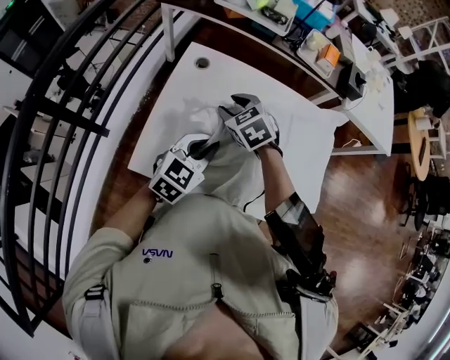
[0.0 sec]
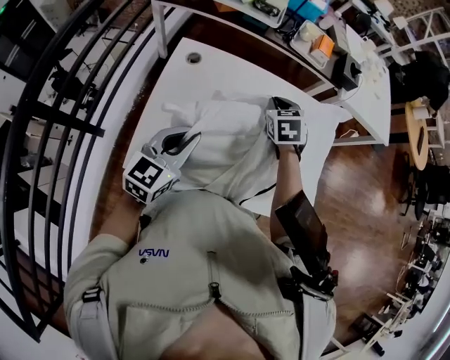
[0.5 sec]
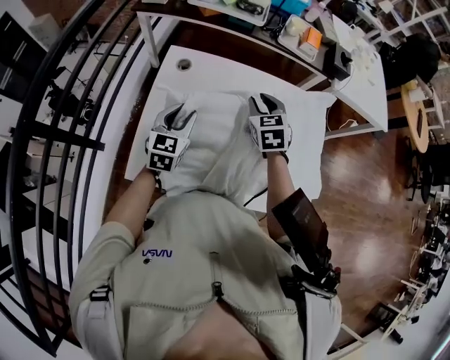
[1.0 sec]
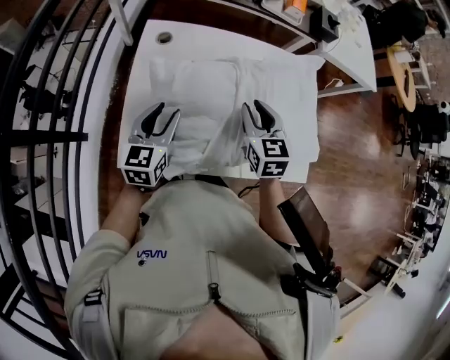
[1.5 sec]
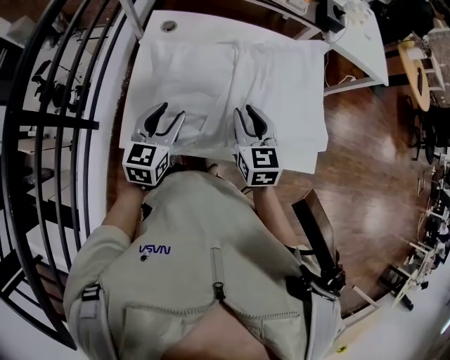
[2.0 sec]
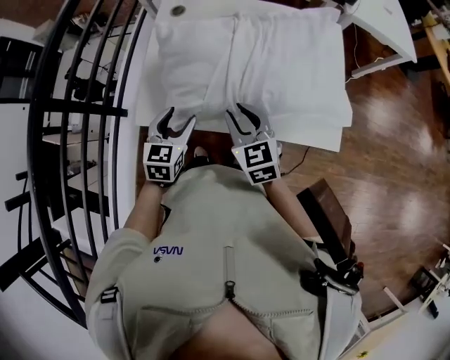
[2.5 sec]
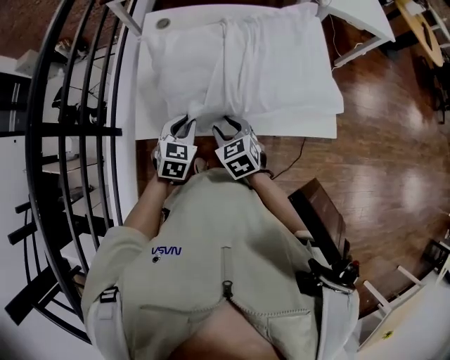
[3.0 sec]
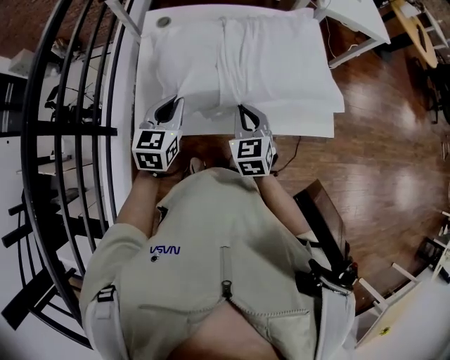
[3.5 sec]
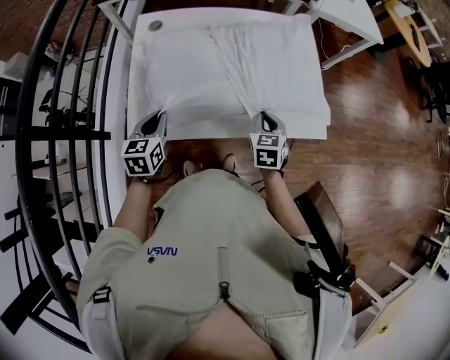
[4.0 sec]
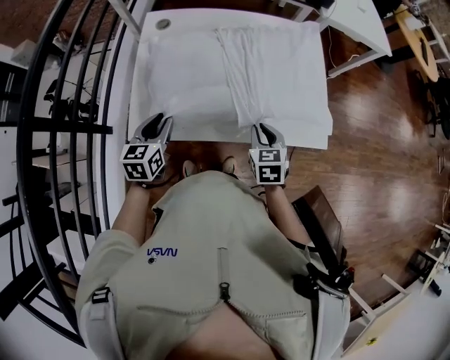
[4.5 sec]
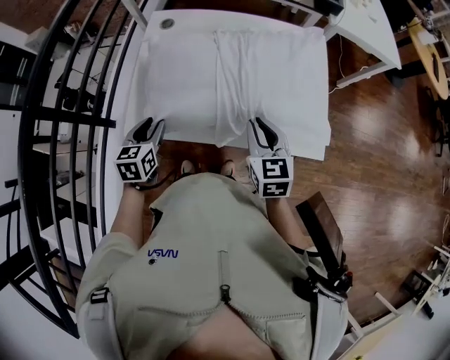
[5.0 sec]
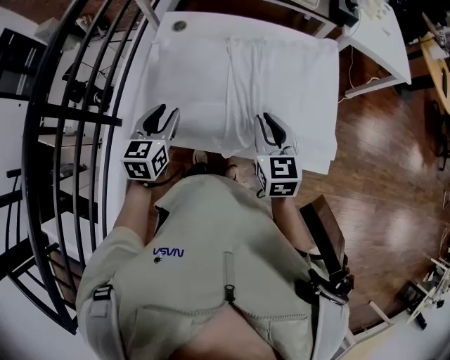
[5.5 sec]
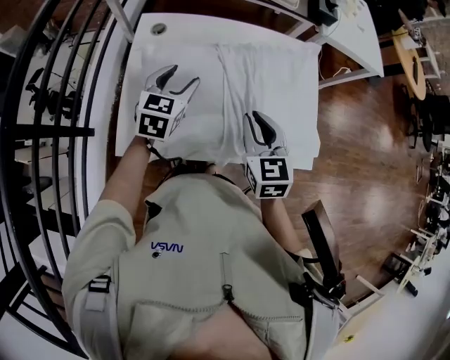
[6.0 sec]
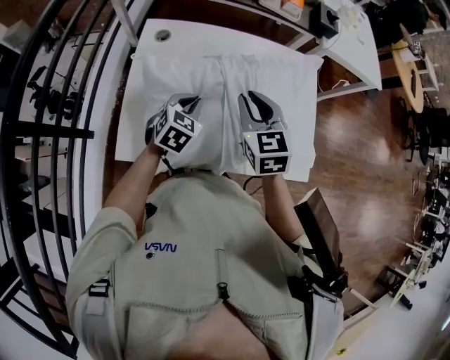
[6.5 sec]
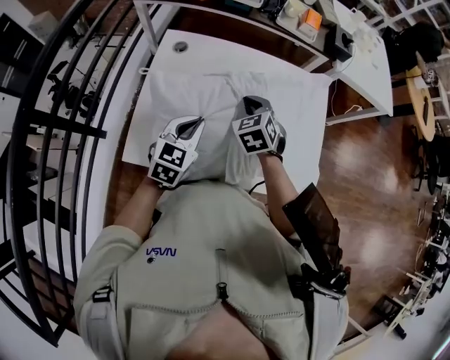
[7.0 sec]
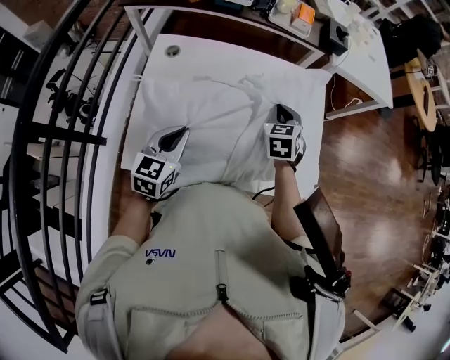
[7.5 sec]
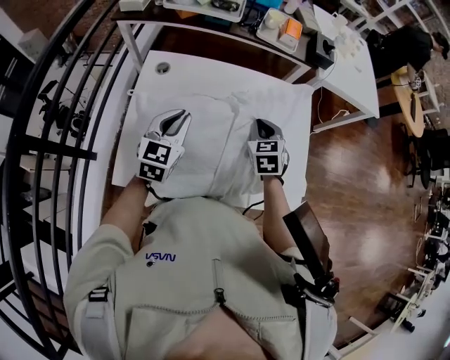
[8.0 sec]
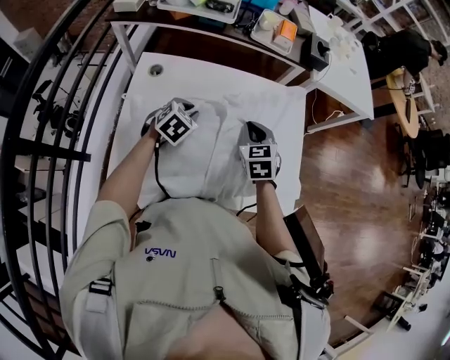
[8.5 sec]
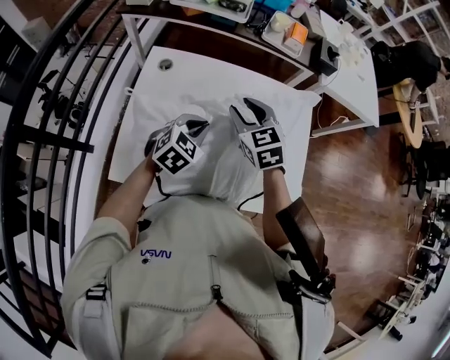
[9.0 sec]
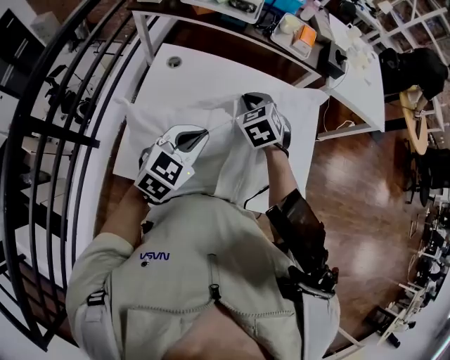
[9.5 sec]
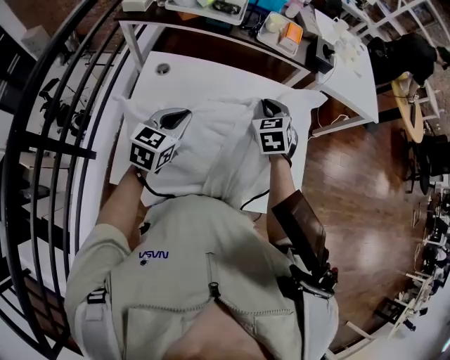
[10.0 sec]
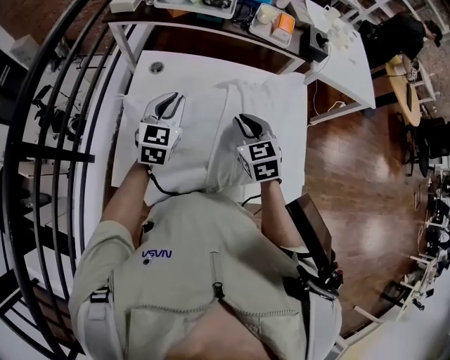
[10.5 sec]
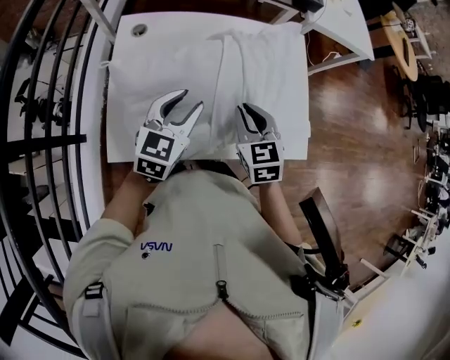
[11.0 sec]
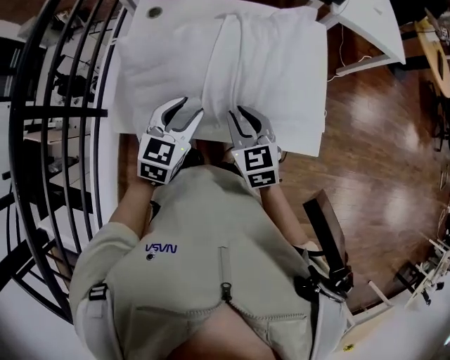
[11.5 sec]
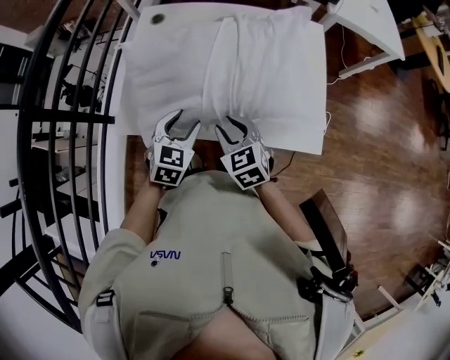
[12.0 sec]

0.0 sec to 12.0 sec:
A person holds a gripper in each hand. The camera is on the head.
0.0 sec to 2.0 sec: The right gripper is displaced backward and to the right by some 20 cm, and turns by approximately 40 degrees, while the left gripper travels to the left by approximately 5 cm, moves some 10 cm forward and comes back, and opens up.
2.0 sec to 4.0 sec: The left gripper moves up and down over some 10 cm, changing direction 2 times, and closes up. The right gripper goes about 15 cm downward, to the right and backward, turns by some 20 degrees, and closes up.
4.0 sec to 6.0 sec: The left gripper moves forward, upward and to the right, about 20 cm, and opens up, while the right gripper goes about 15 cm upward, to the left and forward, and turns by roughly 20 degrees.
6.0 sec to 8.0 sec: The right gripper goes about 15 cm forward and downward, while the left gripper moves roughly 10 cm backward and comes back, and closes up.
8.0 sec to 10.0 sec: The right gripper travels forward by some 5 cm, travels to the left and back again, approximately 10 cm each way, and opens, then closes once more. Meanwhile the left gripper travels downward and back again, about 10 cm each way.
10.0 sec to 12.0 sec: The right gripper travels backward by some 30 cm, rotates about 30 degrees, and opens, while the left gripper moves backward and downward, some 20 cm, turns by about 20 degrees, and opens.

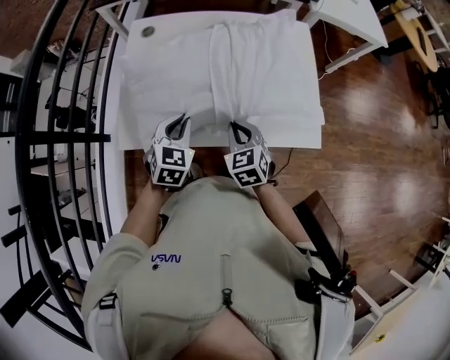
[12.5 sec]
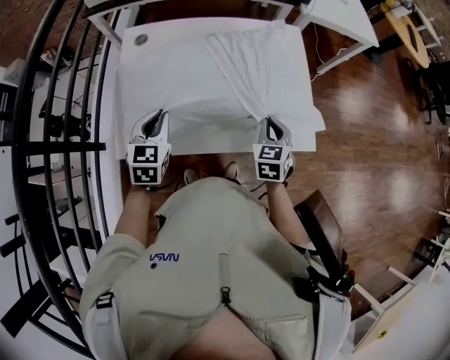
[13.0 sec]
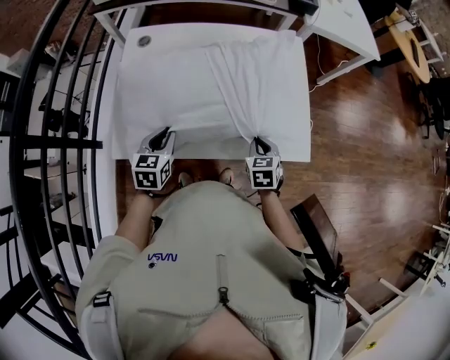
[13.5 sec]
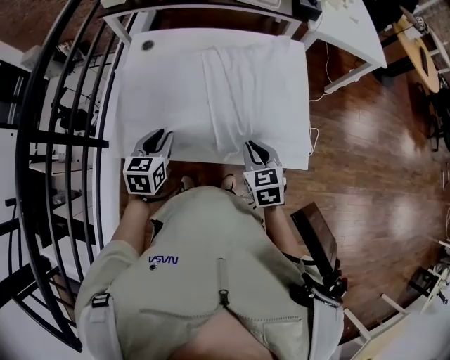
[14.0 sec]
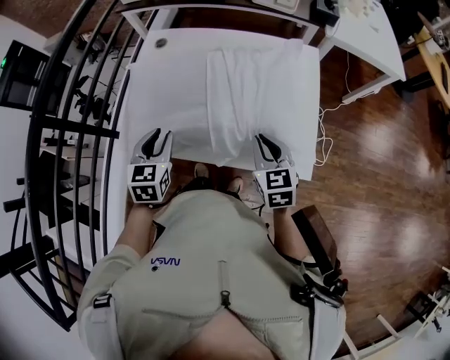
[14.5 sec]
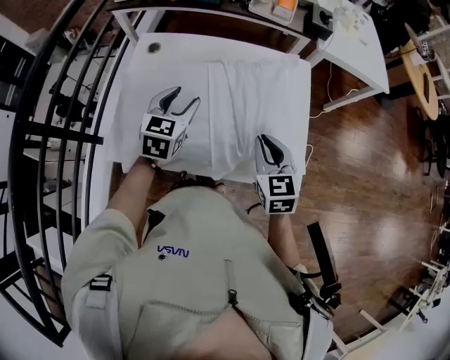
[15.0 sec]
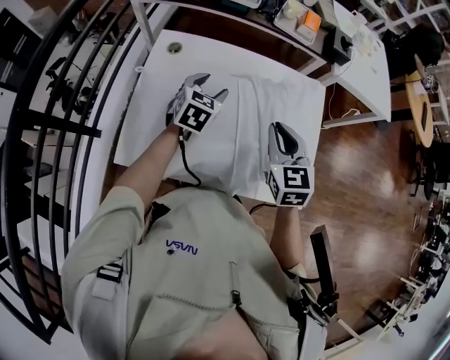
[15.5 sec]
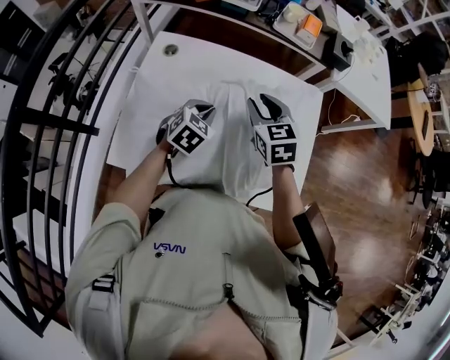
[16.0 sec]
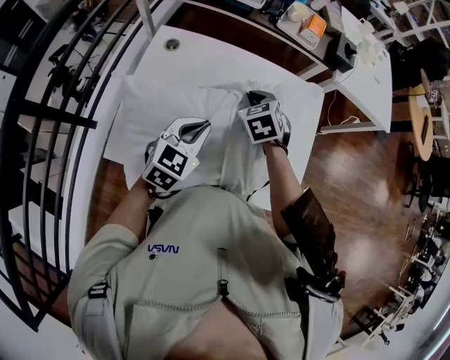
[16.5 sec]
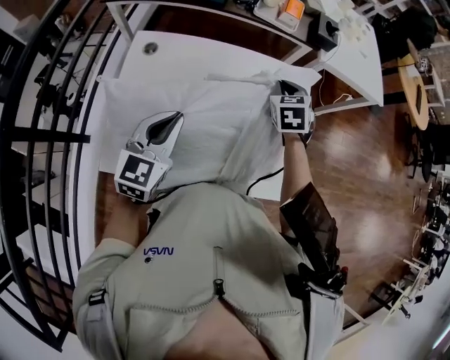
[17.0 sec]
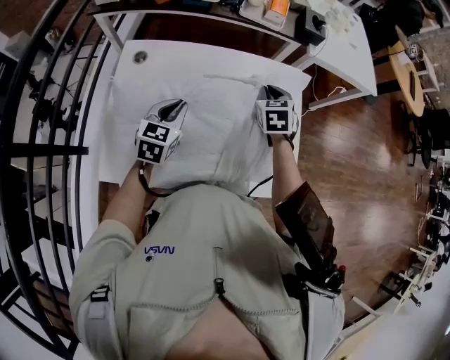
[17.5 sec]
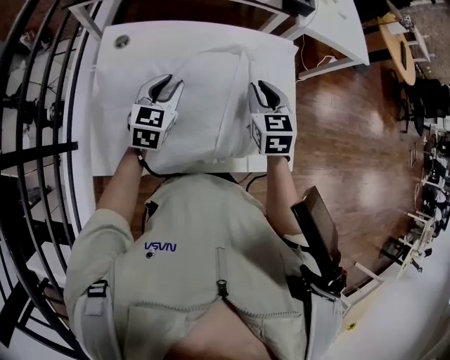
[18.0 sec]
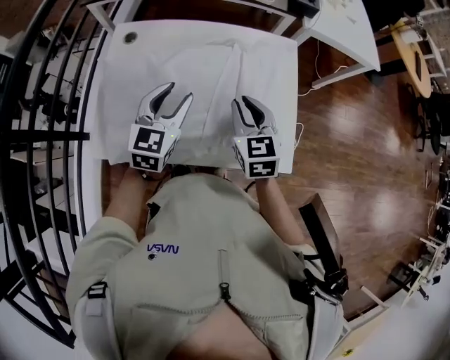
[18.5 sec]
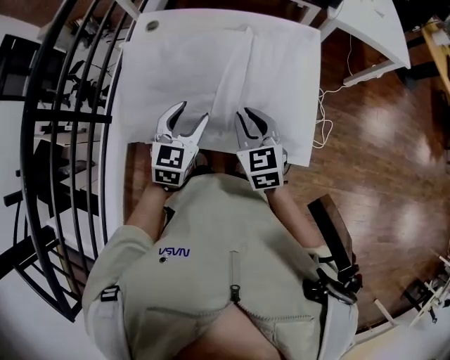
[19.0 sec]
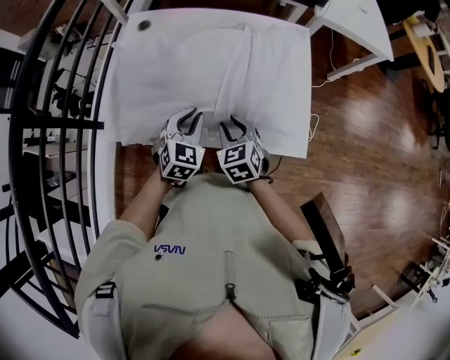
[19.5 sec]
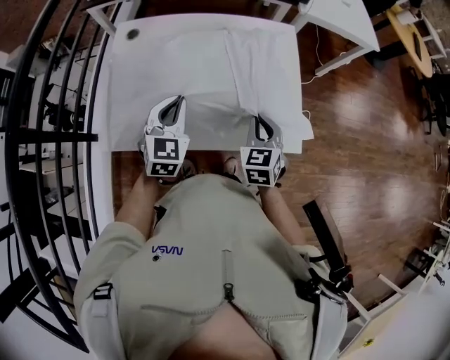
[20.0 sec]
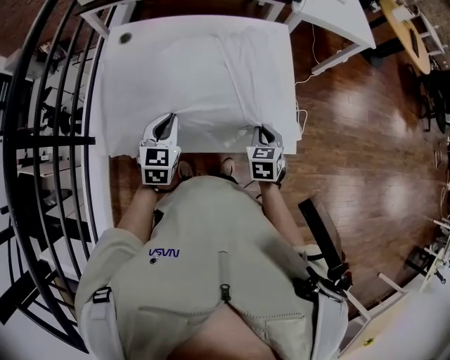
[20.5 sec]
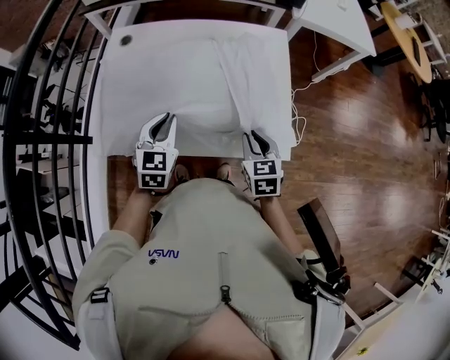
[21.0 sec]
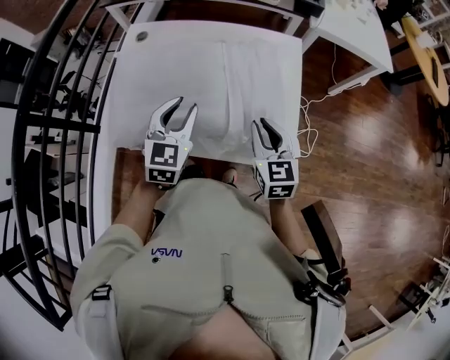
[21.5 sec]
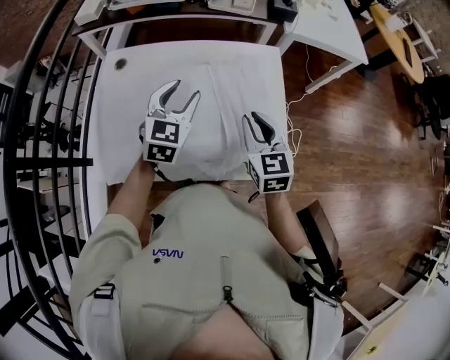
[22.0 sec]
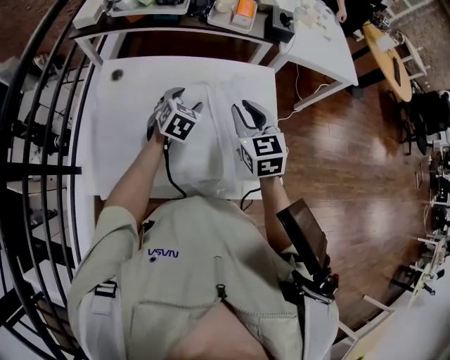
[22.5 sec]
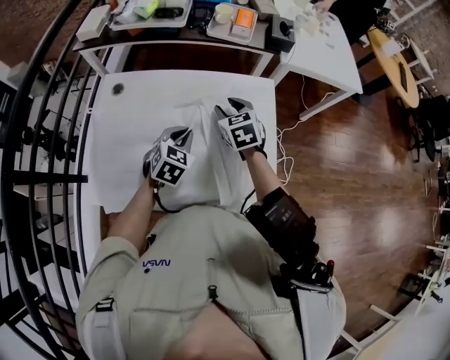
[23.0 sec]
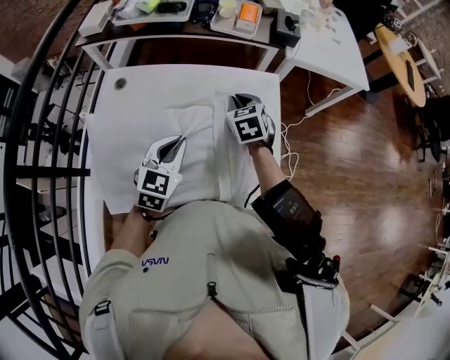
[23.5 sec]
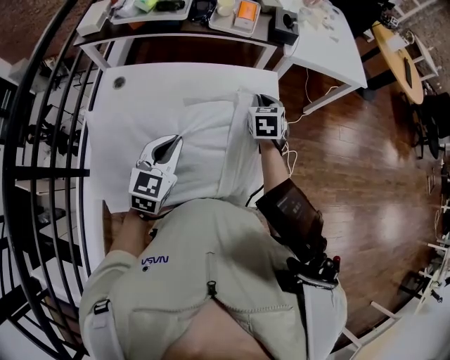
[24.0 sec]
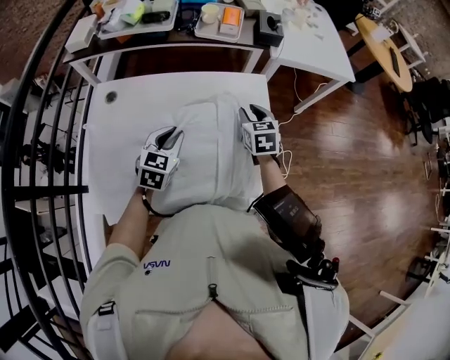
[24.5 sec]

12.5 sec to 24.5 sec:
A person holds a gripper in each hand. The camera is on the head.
12.5 sec to 14.5 sec: The right gripper shifts some 15 cm to the right and upward. Meanwhile the left gripper goes up and down, some 10 cm each way, reversing 2 times, and swivels some 20 degrees.
14.5 sec to 16.5 sec: The right gripper travels forward and to the left by about 25 cm, and changes its angle by some 30 degrees; the left gripper is displaced forward and to the right by some 15 cm, changes its angle by some 30 degrees, and opens, then closes again.
16.5 sec to 18.5 sec: The left gripper goes up and down, about 10 cm each way, reversing 2 times, and opens its fingers; the right gripper travels backward and to the right by some 15 cm, and turns by some 30 degrees.
18.5 sec to 20.5 sec: The left gripper moves up and down over about 10 cm, changing direction 2 times, and closes. Meanwhile the right gripper is displaced downward, to the right and backward by approximately 20 cm, and swivels about 30 degrees.
20.5 sec to 22.5 sec: The right gripper heads upward and forward, covering about 25 cm, and changes its angle by about 30 degrees, while the left gripper is displaced forward by about 20 cm, and opens.
22.5 sec to 24.5 sec: The left gripper heads backward, covering roughly 5 cm, and closes, while the right gripper moves downward, forward and to the right, roughly 15 cm.

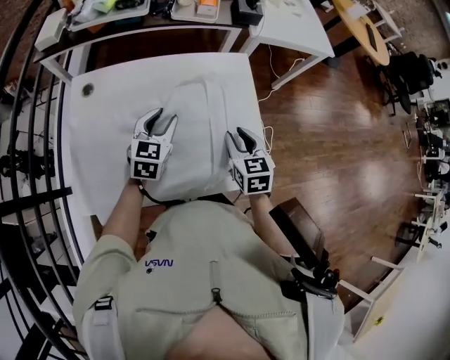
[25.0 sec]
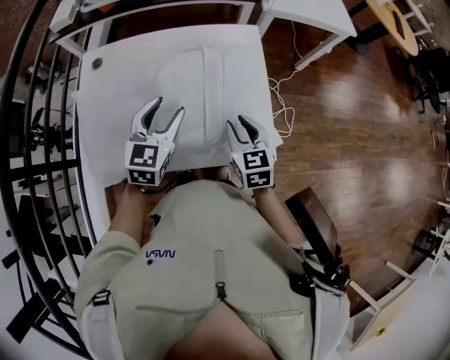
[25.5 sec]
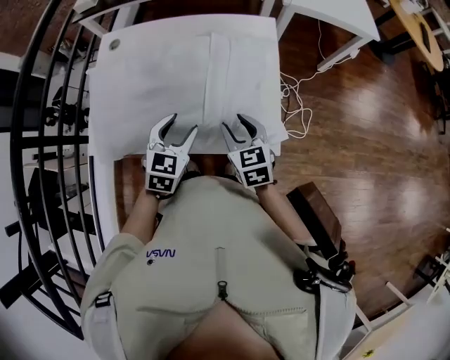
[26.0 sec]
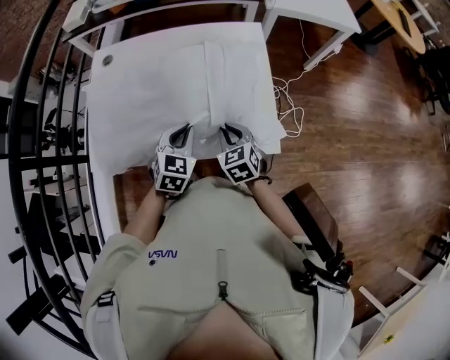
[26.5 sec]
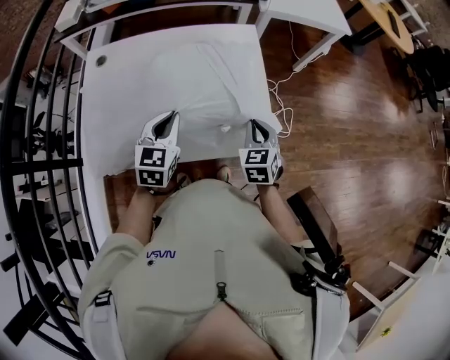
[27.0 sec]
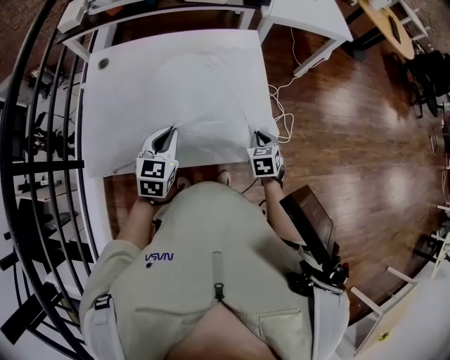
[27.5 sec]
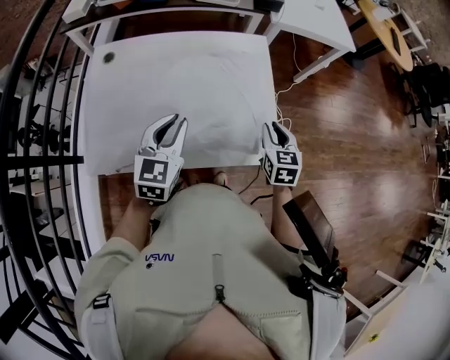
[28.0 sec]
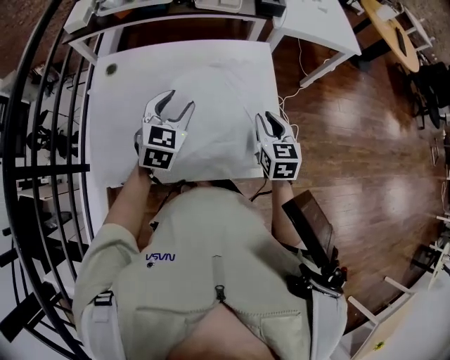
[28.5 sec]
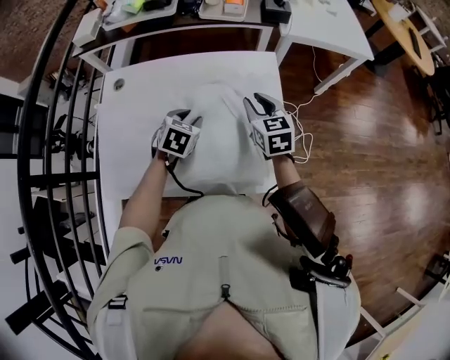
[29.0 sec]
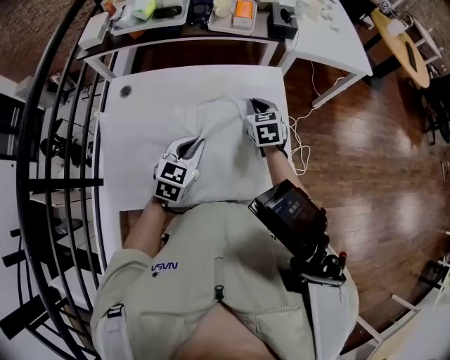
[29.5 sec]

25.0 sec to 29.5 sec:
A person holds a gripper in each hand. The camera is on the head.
25.0 sec to 27.0 sec: The right gripper is displaced backward and to the right by roughly 10 cm, and closes its fingers. Meanwhile the left gripper is displaced backward by about 15 cm, and closes up.
27.0 sec to 29.5 sec: The left gripper heads forward, covering roughly 5 cm, and opens and closes again. Meanwhile the right gripper goes some 25 cm forward and to the left, and opens and closes again.
